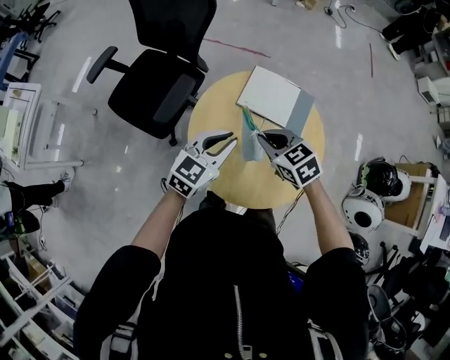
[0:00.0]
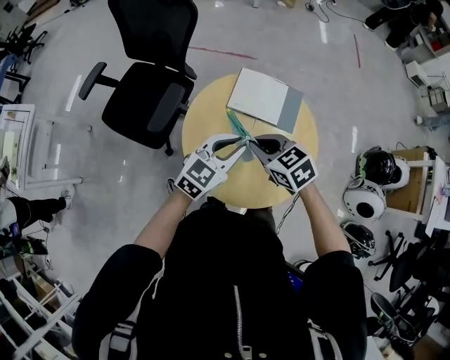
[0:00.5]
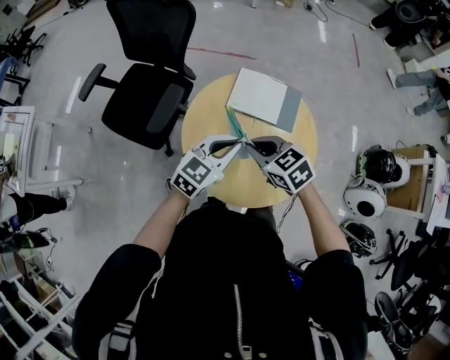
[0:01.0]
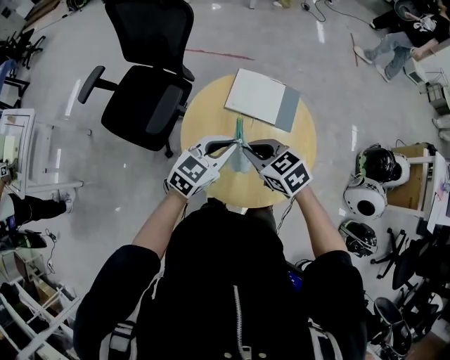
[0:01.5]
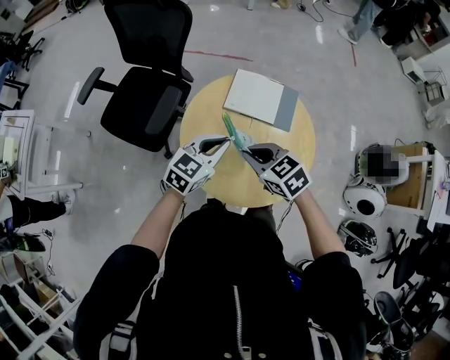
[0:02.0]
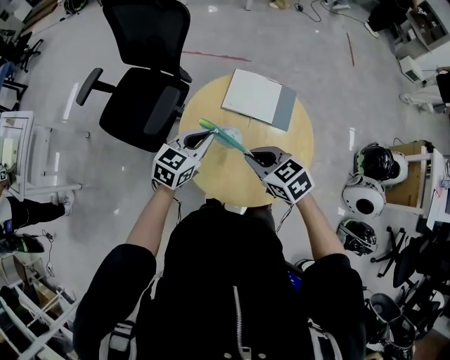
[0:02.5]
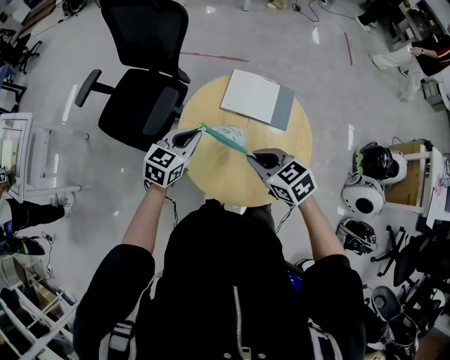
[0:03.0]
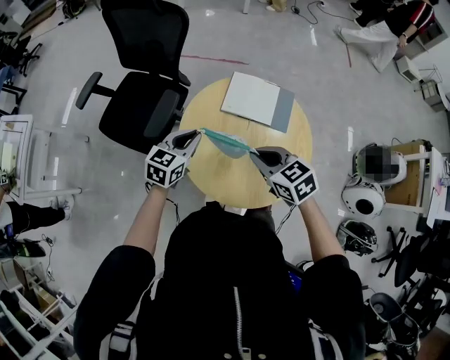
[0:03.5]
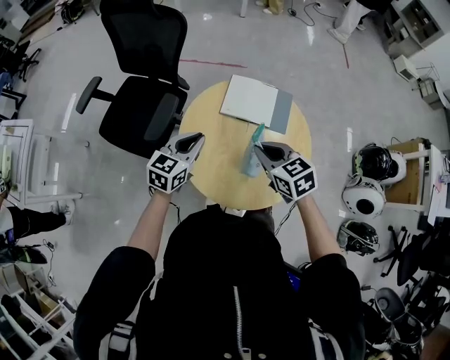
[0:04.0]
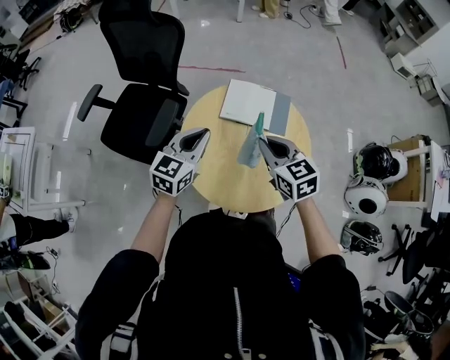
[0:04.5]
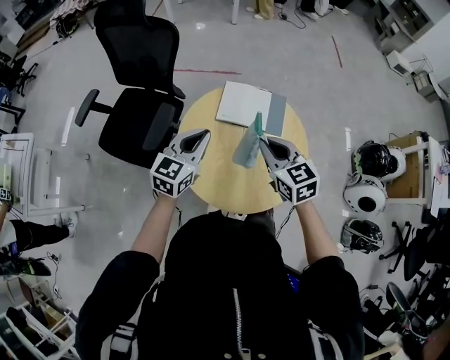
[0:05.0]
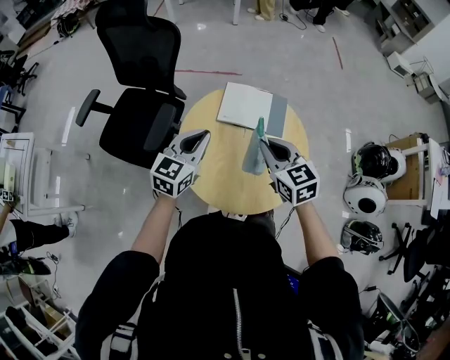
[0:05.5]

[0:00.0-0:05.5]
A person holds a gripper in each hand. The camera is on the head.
0:00.0 to 0:02.0: The right gripper travels backward by some 5 cm.
0:02.0 to 0:03.5: The left gripper moves to the left, about 10 cm.
0:03.5 to 0:05.5: The right gripper ends up some 5 cm from where it was, and turns by approximately 20 degrees, while the left gripper heads upward, covering roughly 10 cm.

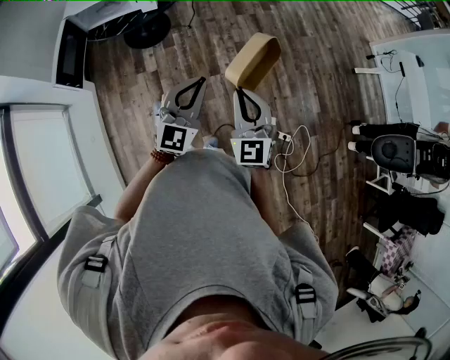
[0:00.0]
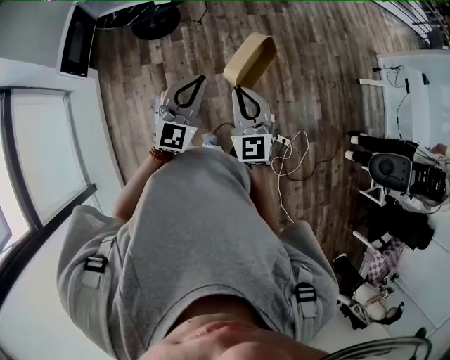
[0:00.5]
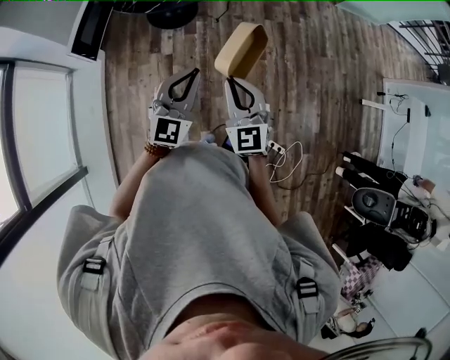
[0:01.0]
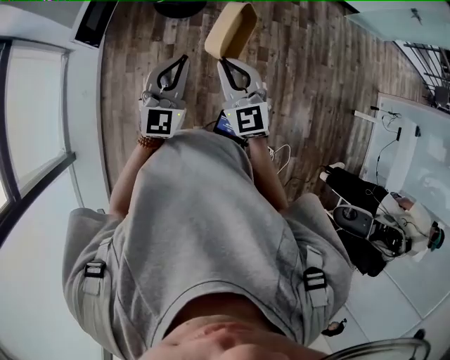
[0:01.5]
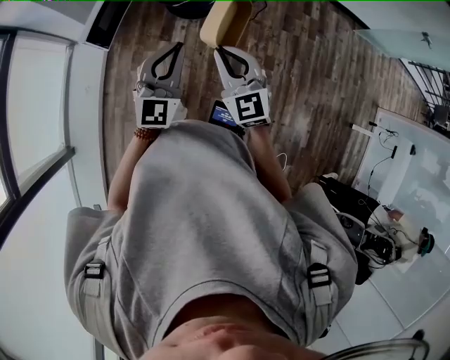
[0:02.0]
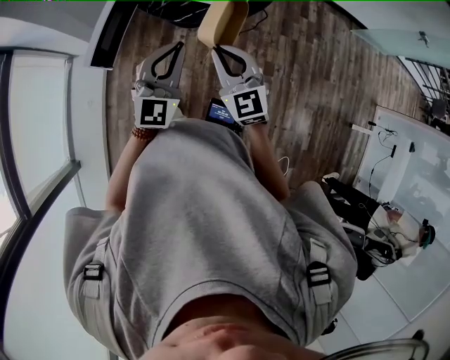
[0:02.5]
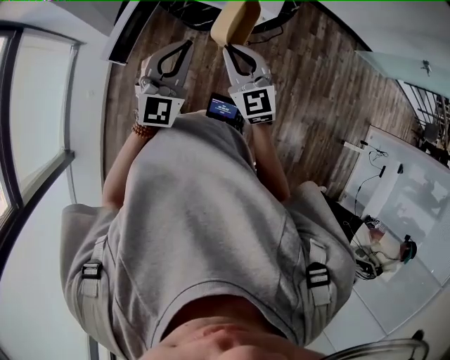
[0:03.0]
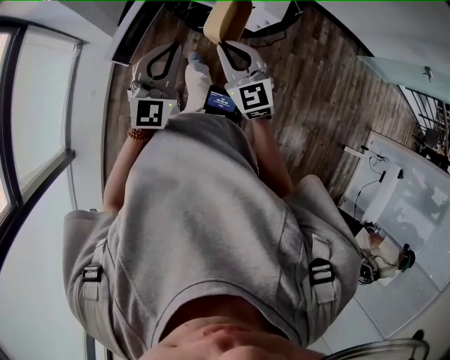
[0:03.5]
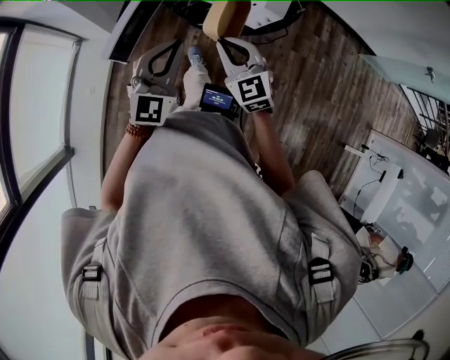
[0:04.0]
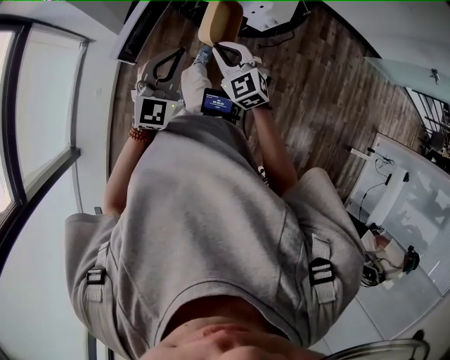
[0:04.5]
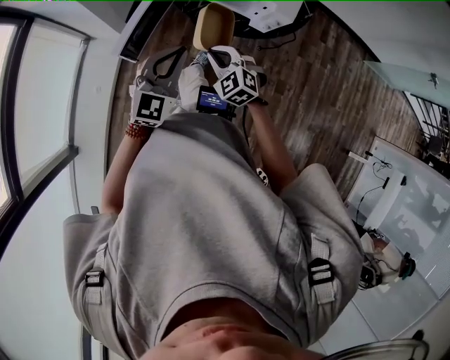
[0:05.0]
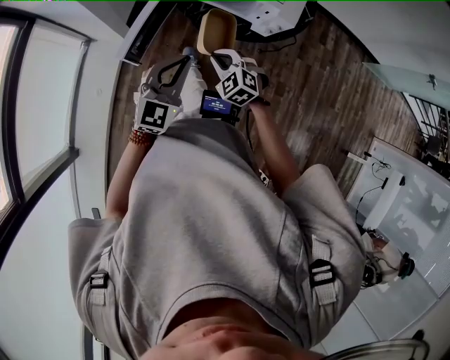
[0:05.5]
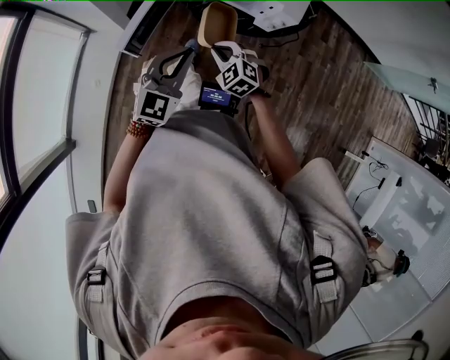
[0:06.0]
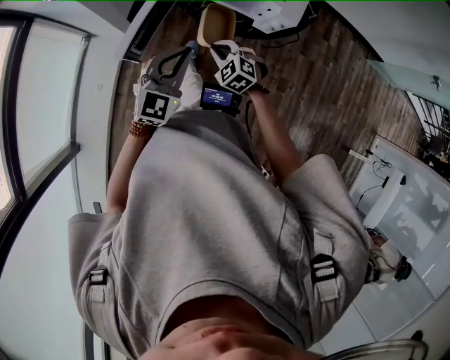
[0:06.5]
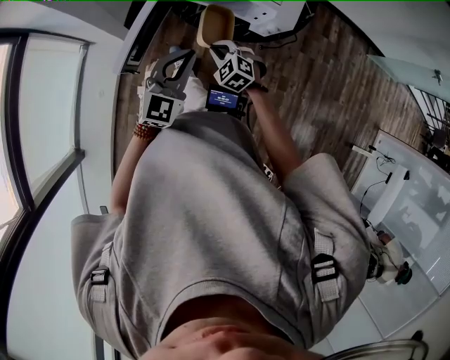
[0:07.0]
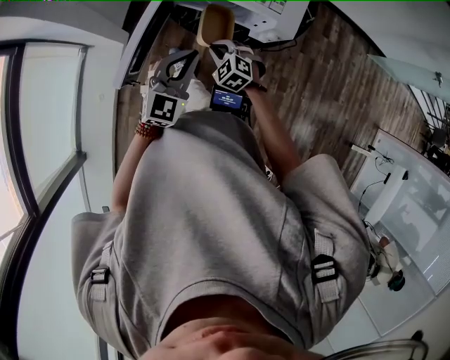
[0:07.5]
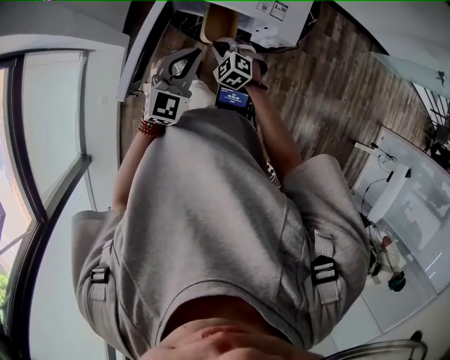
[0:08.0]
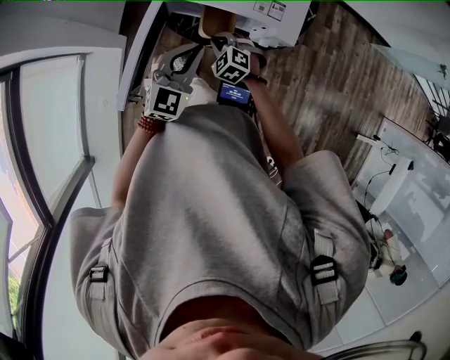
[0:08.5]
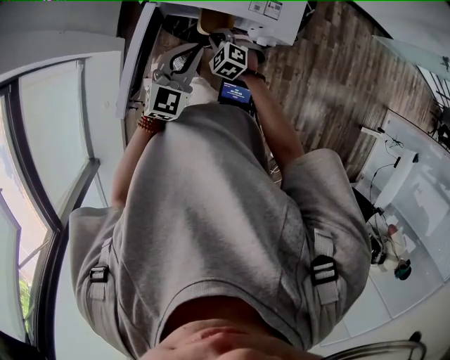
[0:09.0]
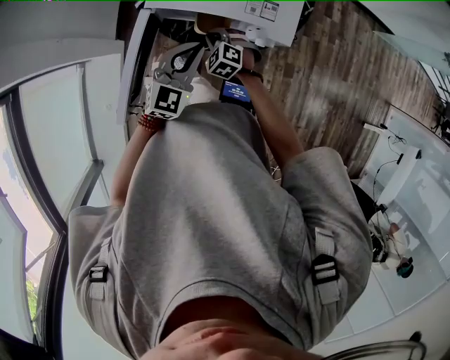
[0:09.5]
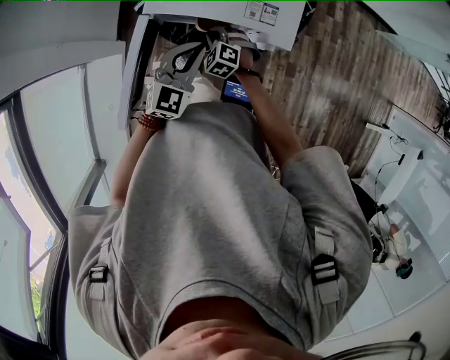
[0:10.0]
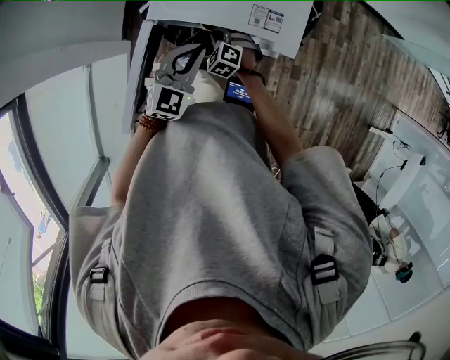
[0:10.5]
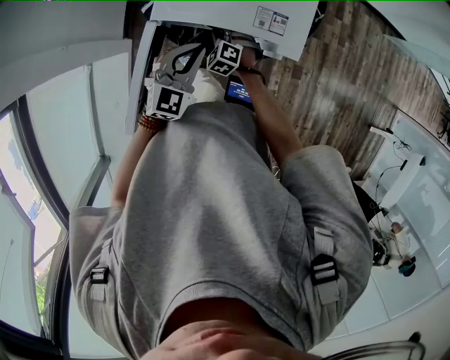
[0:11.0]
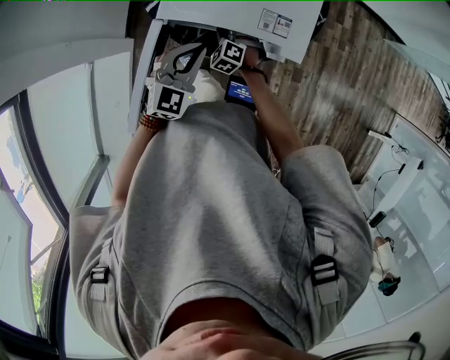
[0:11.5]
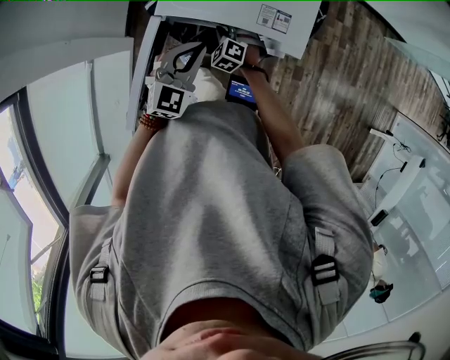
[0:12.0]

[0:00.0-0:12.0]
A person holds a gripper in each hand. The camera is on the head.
0:00.0 to 0:02.0: The right gripper shifts by approximately 35 cm, and swivels approximately 40 degrees; the left gripper changes place by approximately 35 cm, and swivels about 30 degrees.
0:02.0 to 0:04.0: The two grippers go roughly 15 cm forward and to the left.
0:04.0 to 0:06.0: The right gripper moves downward, roughly 15 cm, and changes its angle by roughly 30 degrees.
0:06.0 to 0:08.0: The two grippers go some 15 cm forward.
0:08.0 to 0:10.0: Both grippers move forward, about 10 cm.
0:10.0 to 0:12.0: The grippers stay close to where they were, moving slightly.

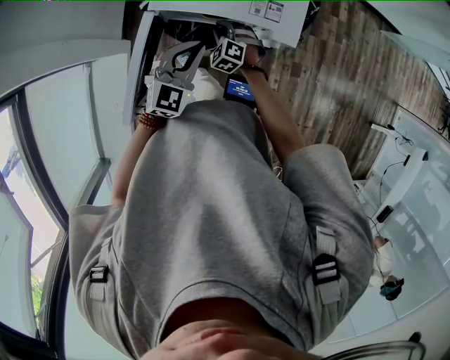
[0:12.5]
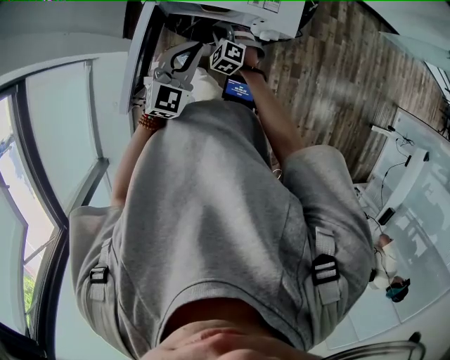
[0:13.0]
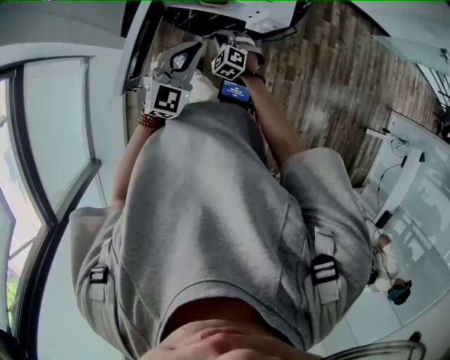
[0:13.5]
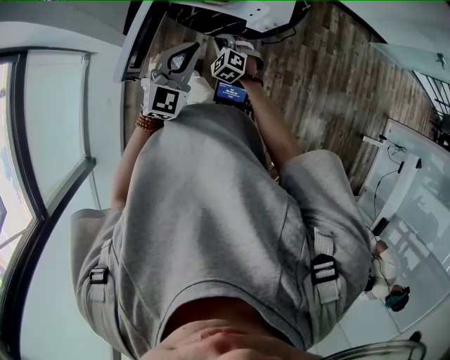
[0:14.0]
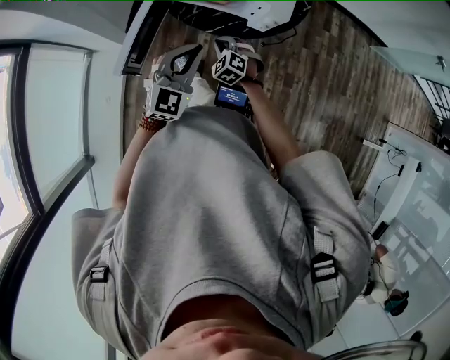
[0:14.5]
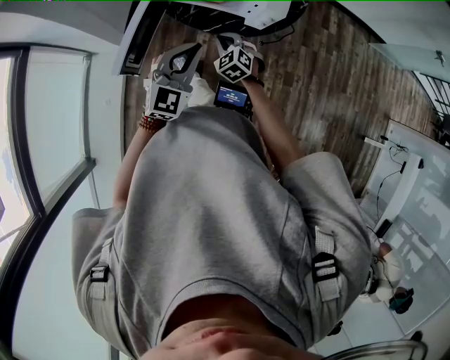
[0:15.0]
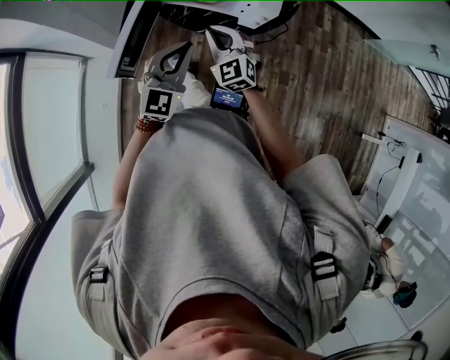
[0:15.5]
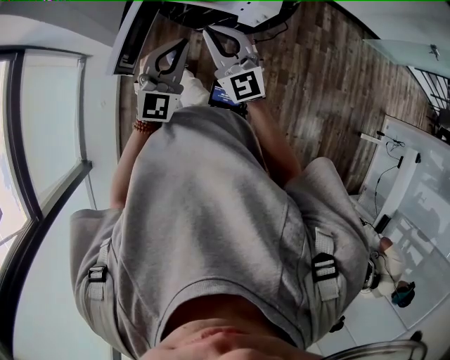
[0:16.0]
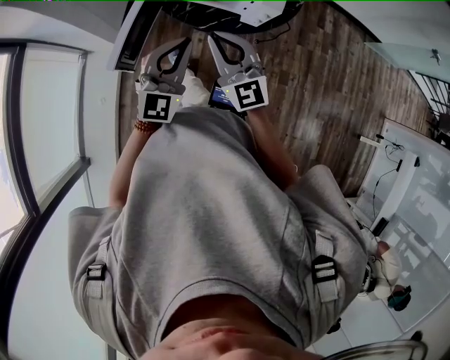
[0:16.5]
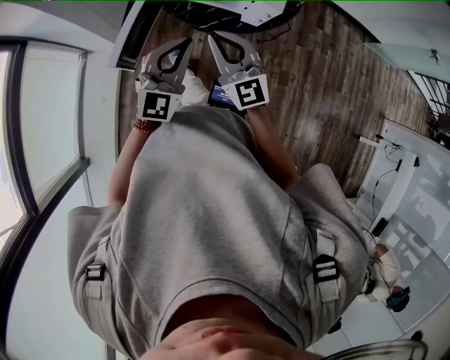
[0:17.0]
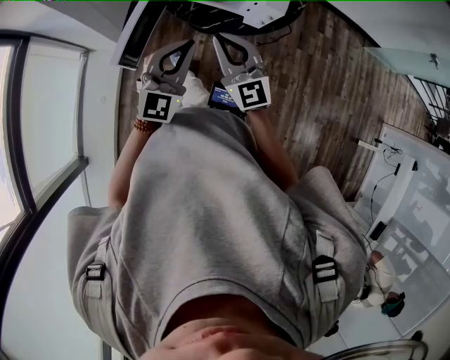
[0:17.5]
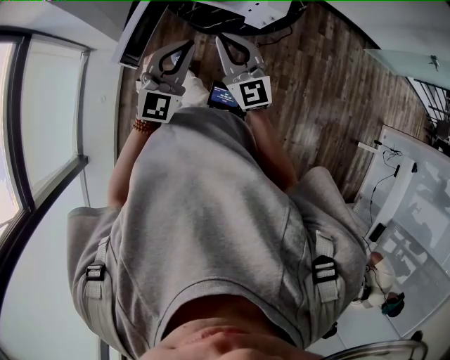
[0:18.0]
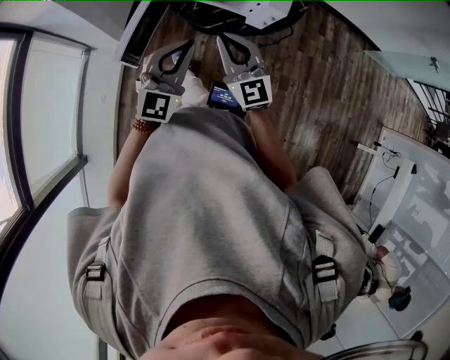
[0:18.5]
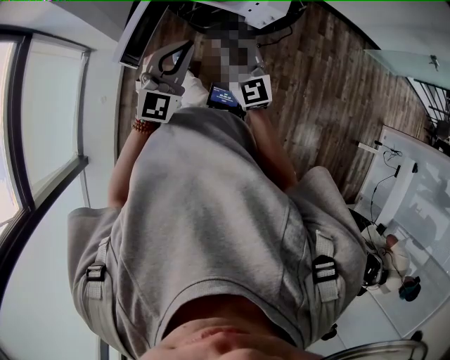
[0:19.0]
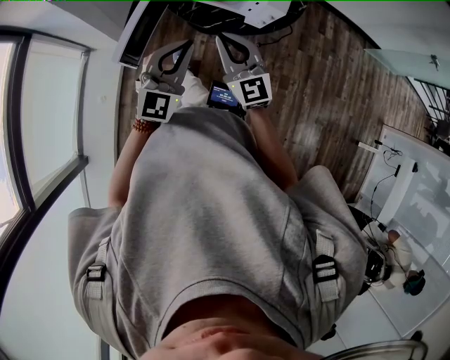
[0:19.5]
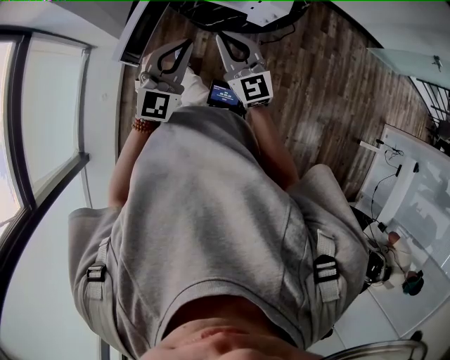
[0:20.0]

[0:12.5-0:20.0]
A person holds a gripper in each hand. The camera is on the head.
0:12.5 to 0:14.5: Both grippers move backward, roughly 15 cm.
0:14.5 to 0:16.5: The right gripper travels upward by some 25 cm, and points its fingers about 40 degrees further upward. Meanwhile the left gripper goes some 5 cm upward.
0:16.5 to 0:20.0: The grippers move only a little.

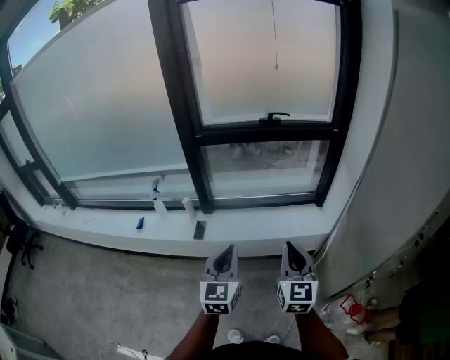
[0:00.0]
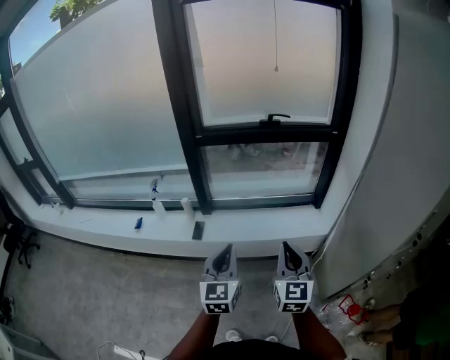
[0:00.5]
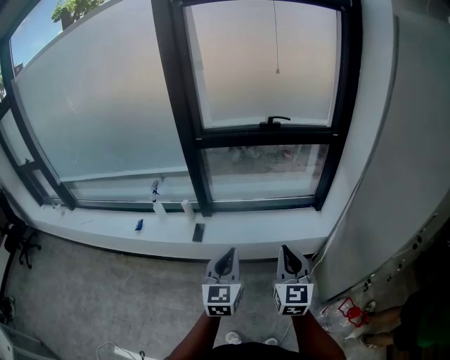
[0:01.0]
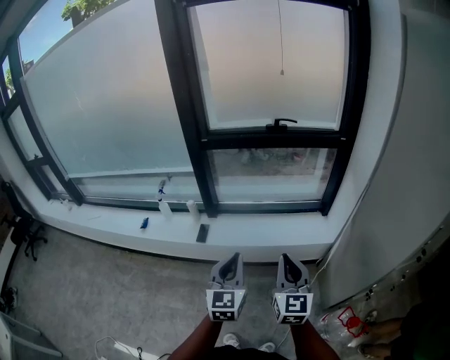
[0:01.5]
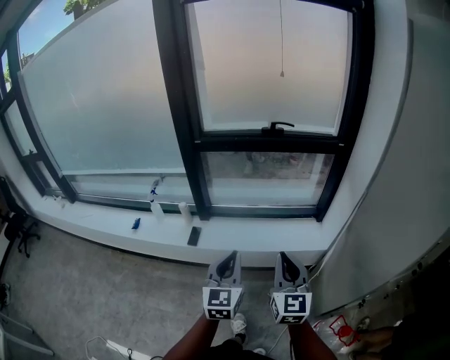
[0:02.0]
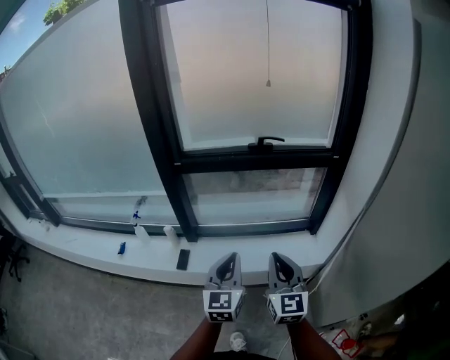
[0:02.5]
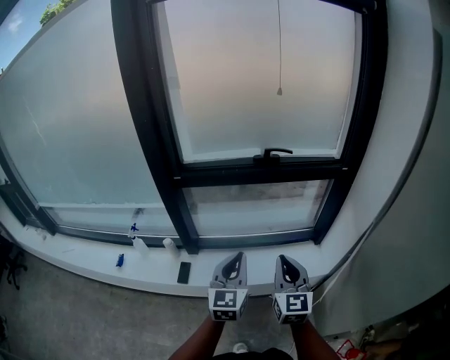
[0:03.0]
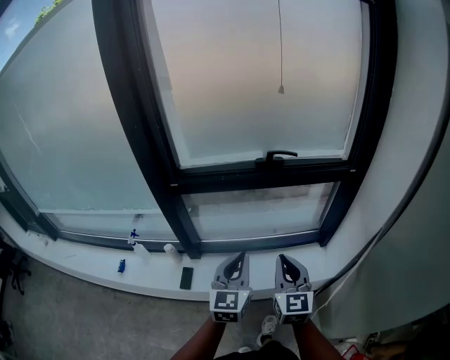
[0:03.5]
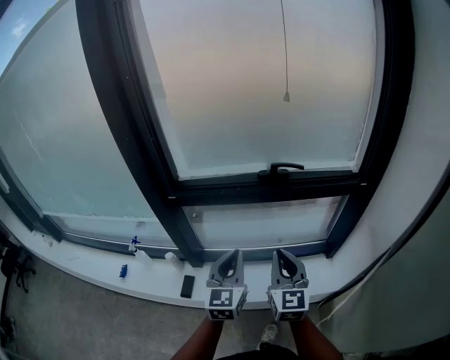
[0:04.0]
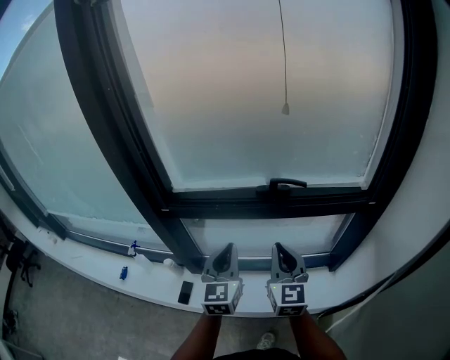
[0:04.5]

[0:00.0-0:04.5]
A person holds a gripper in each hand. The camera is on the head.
0:00.0 to 0:02.0: The left gripper shifts by about 5 cm.
0:02.0 to 0:04.5: The pair of grippers is taken forward, approximately 50 cm.
